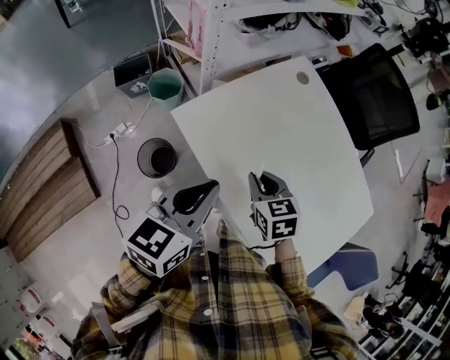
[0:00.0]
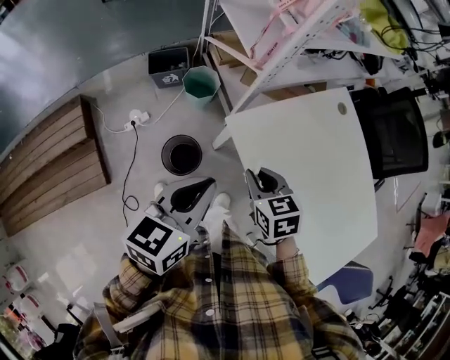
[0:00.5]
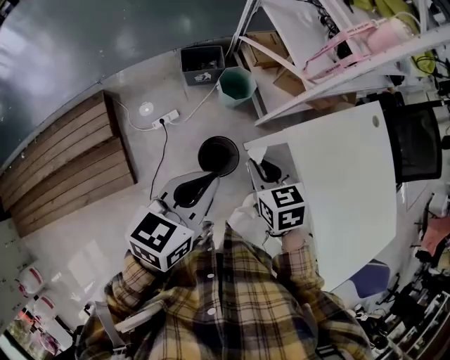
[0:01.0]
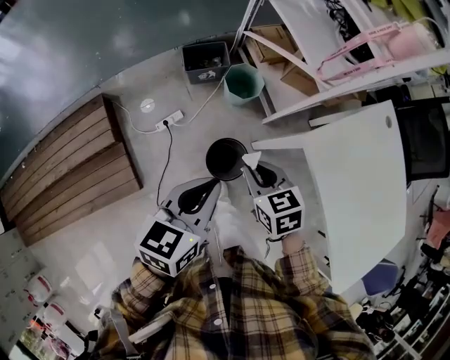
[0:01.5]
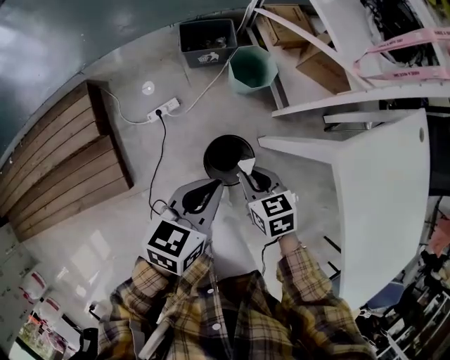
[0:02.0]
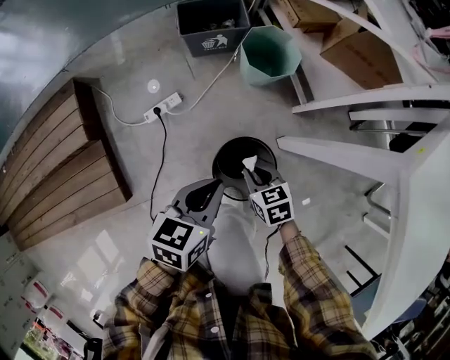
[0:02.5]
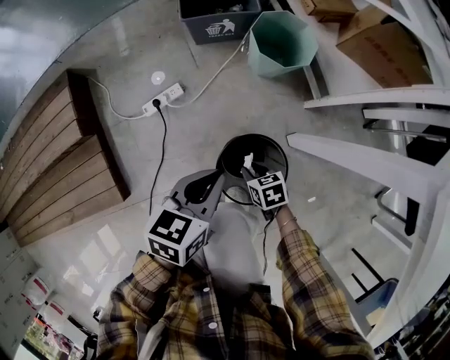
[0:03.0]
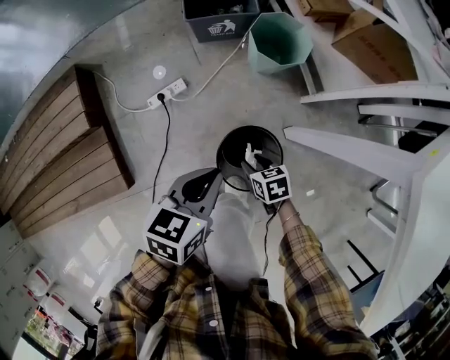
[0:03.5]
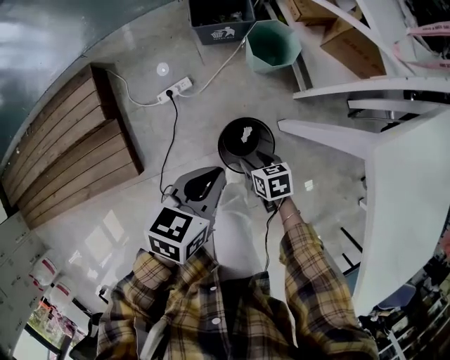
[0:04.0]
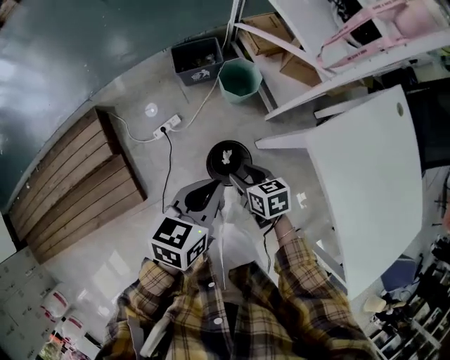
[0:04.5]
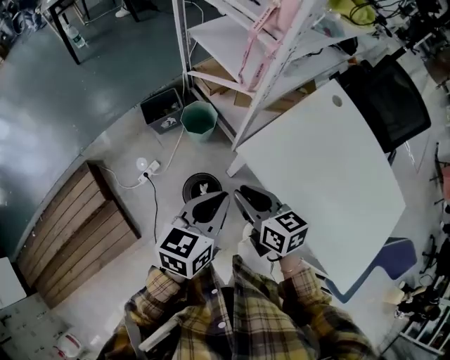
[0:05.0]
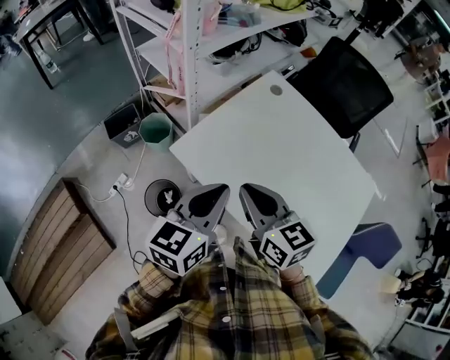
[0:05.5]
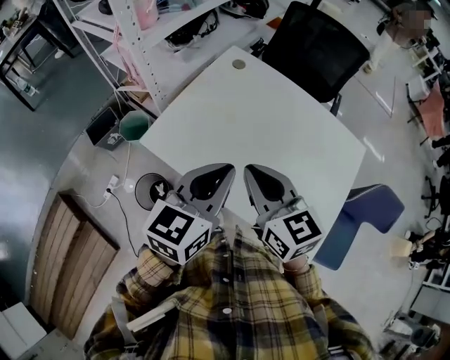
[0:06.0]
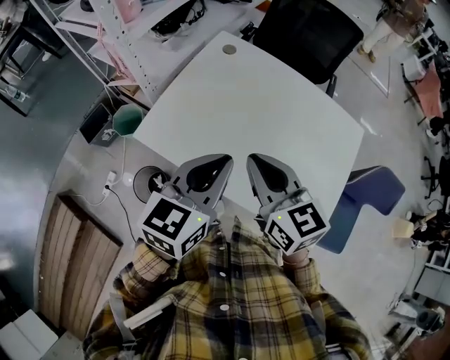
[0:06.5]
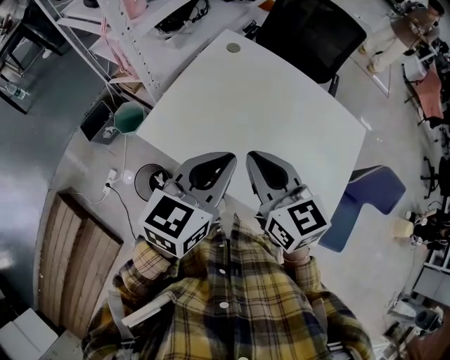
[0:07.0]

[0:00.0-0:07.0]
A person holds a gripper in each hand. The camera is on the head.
0:00.0 to 0:02.0: Both grippers travel together to the left and downward, about 50 cm. The right gripper rotates roughly 20 degrees.
0:02.0 to 0:03.5: Both grippers move downward, some 25 cm. The right gripper opens its fingers.
0:03.5 to 0:05.0: Both grippers travel together upward, approximately 50 cm. The right gripper tips its fingers upward by approximately 30 degrees, while the left gripper turns by roughly 20 degrees.
0:05.0 to 0:07.0: The left gripper shifts by approximately 35 cm, and rotates approximately 30 degrees, while the right gripper shifts by about 35 cm, and rotates about 30 degrees.

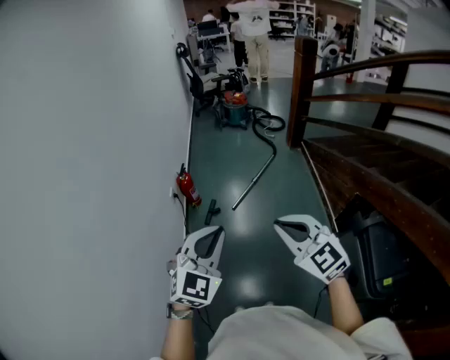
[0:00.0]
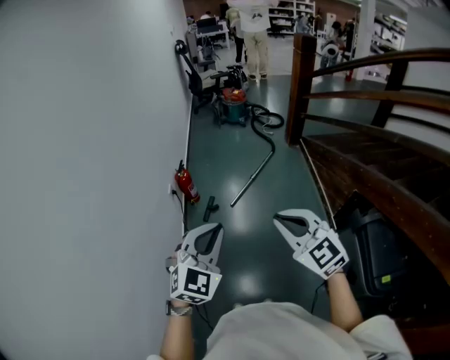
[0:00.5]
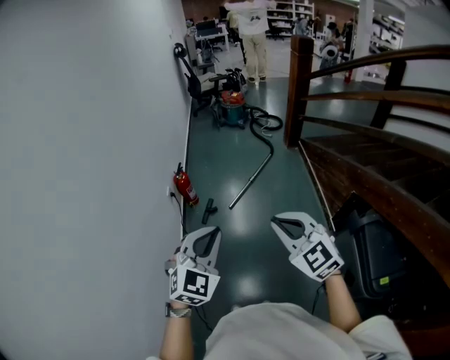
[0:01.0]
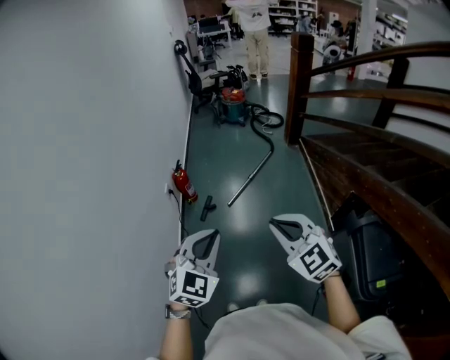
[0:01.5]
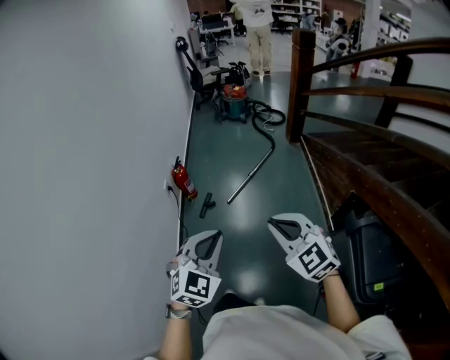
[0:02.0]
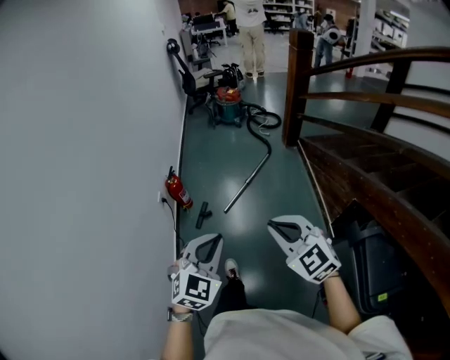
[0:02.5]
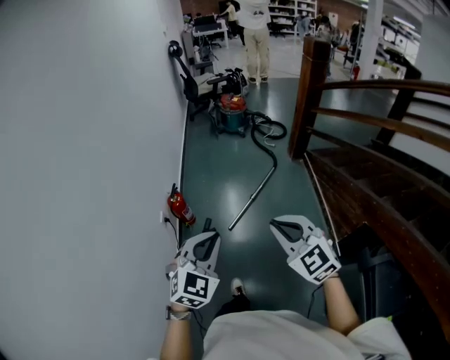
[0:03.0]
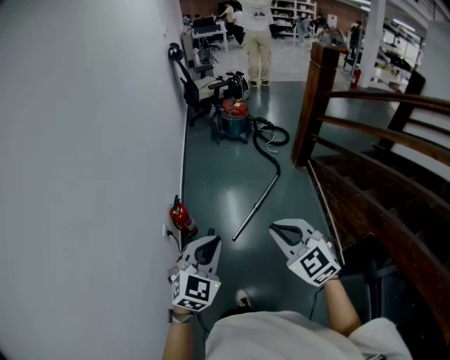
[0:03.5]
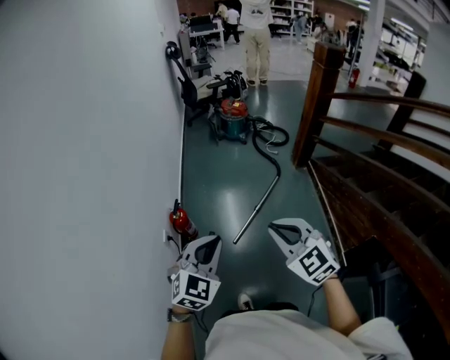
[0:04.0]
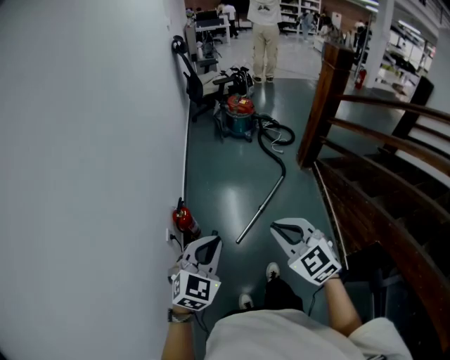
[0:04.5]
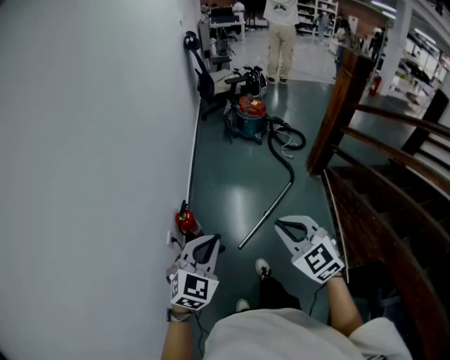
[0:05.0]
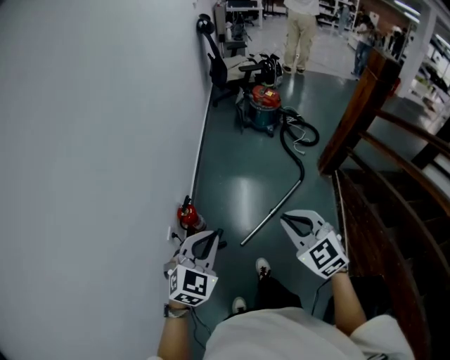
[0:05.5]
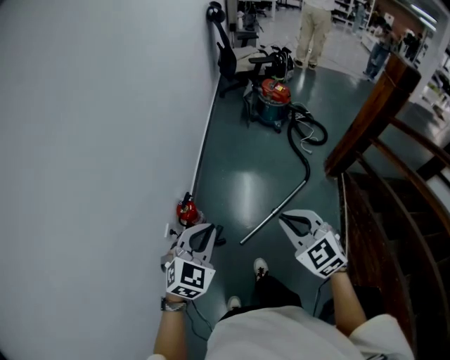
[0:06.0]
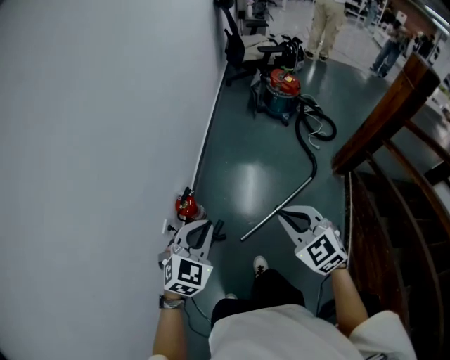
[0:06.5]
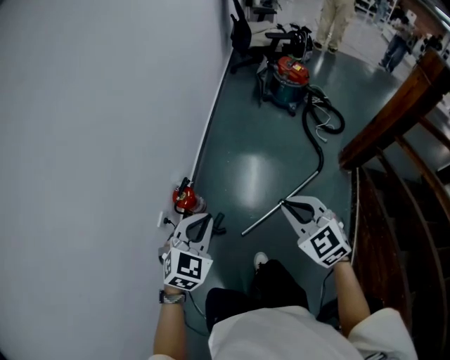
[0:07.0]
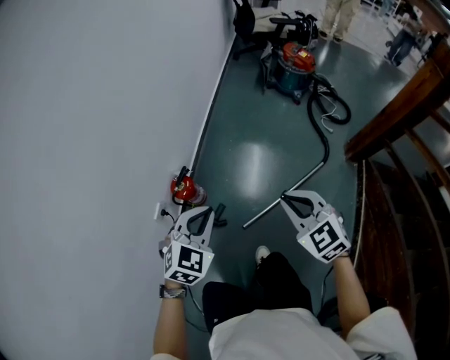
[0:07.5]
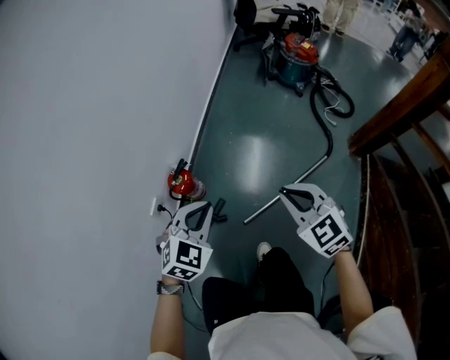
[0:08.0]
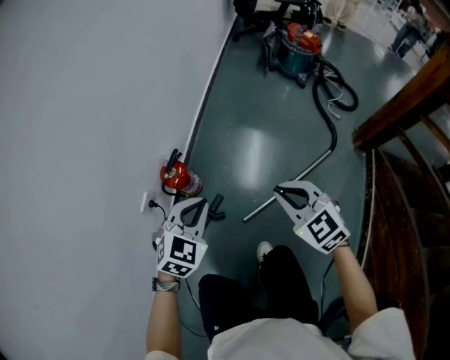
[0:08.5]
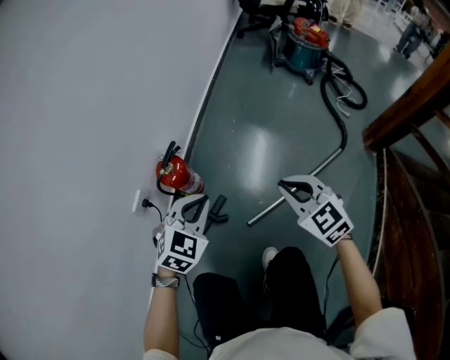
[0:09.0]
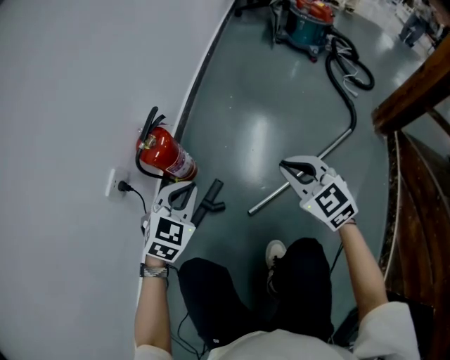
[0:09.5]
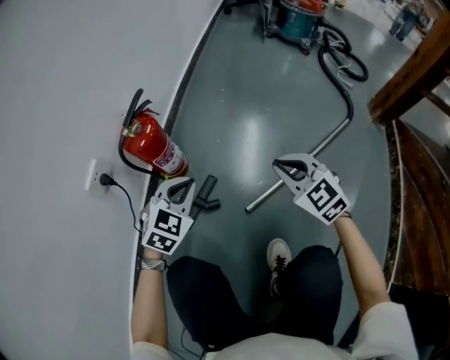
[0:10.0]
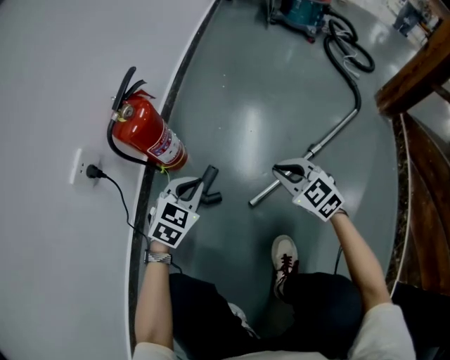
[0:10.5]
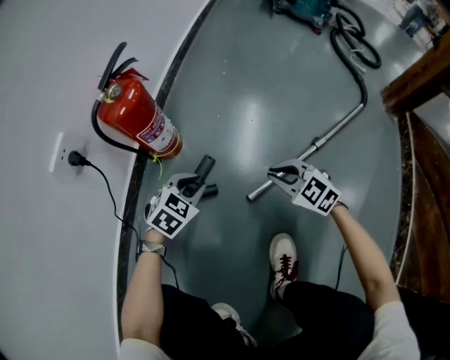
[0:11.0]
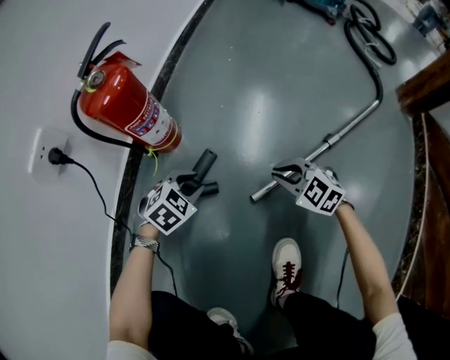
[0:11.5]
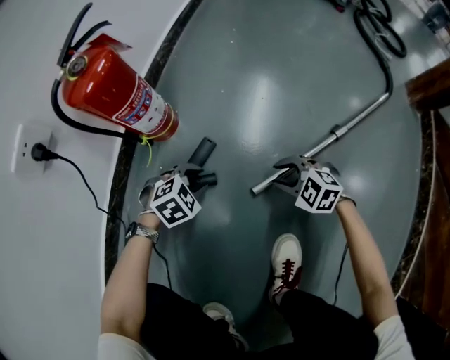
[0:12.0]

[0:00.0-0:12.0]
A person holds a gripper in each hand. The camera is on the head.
0:00.0 to 0:02.0: Both grippers move to the right, about 5 cm.
0:02.0 to 0:04.0: Both grippers travel together forward, some 40 cm.
0:04.0 to 0:06.0: The two grippers go about 25 cm forward.
0:06.0 to 0:08.0: The left gripper goes some 25 cm downward. The right gripper shifts approximately 25 cm downward and forward.
0:08.0 to 0:10.0: Both grippers travel together downward, approximately 40 cm.
0:10.0 to 0:12.0: The grippers both shift downward by about 30 cm. The right gripper turns by approximately 30 degrees, and opens up. Meanwhile the left gripper swivels roughly 30 degrees, and opens its fingers.

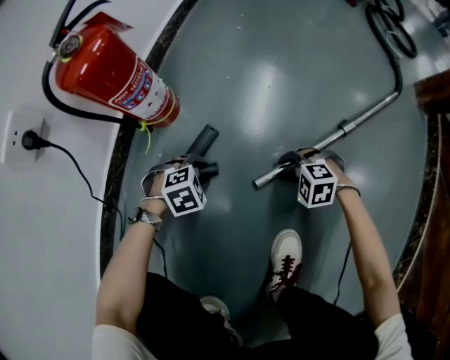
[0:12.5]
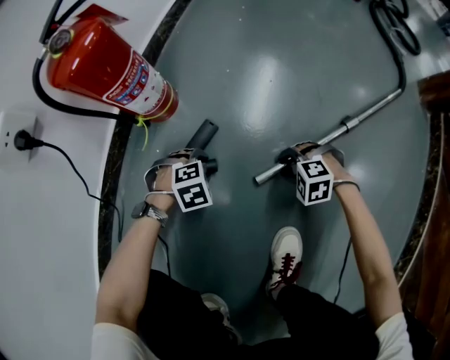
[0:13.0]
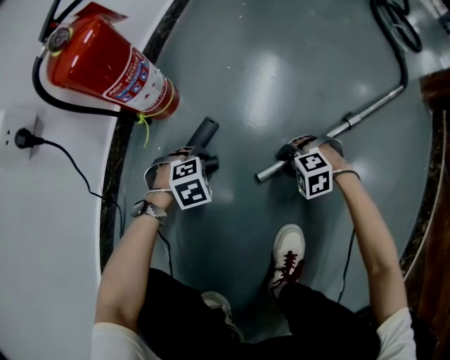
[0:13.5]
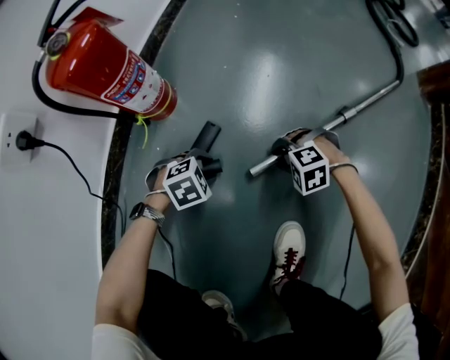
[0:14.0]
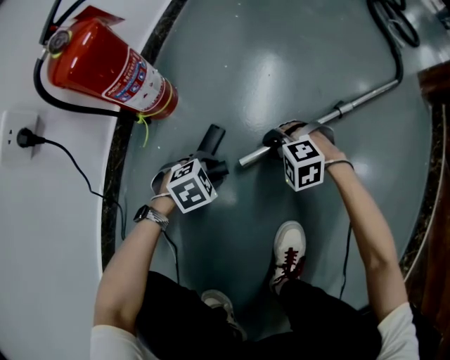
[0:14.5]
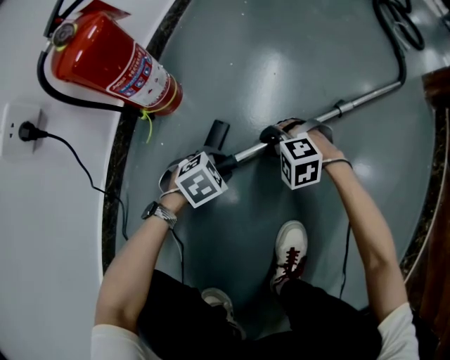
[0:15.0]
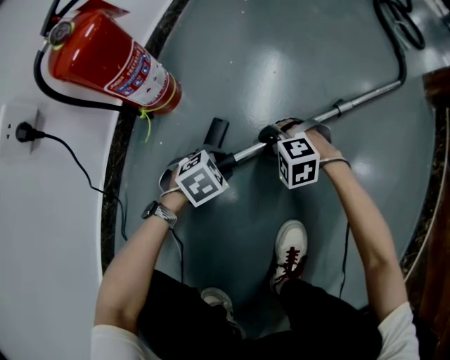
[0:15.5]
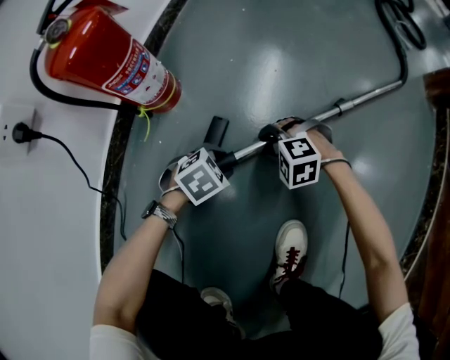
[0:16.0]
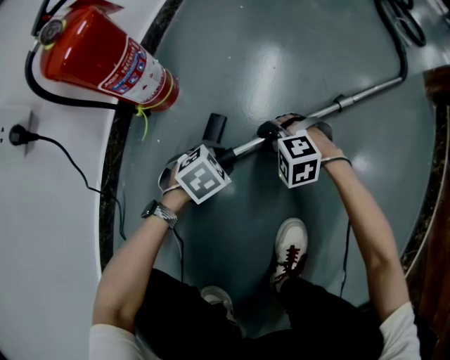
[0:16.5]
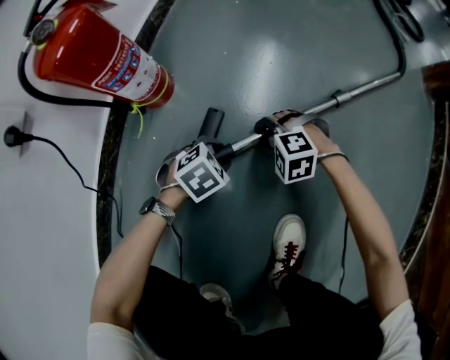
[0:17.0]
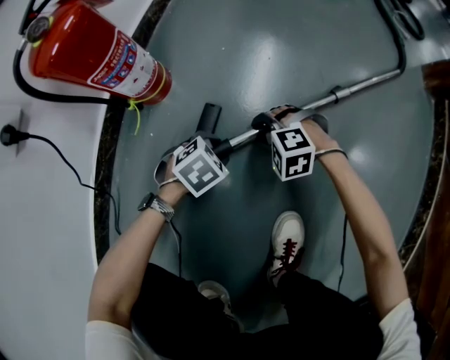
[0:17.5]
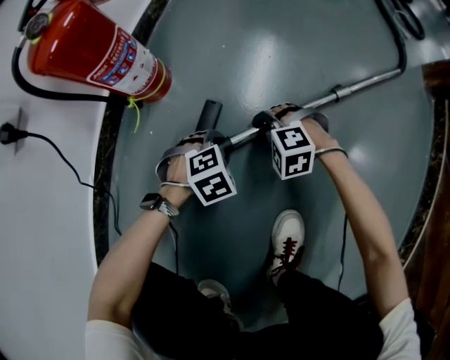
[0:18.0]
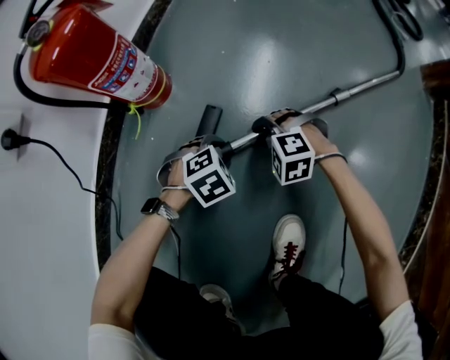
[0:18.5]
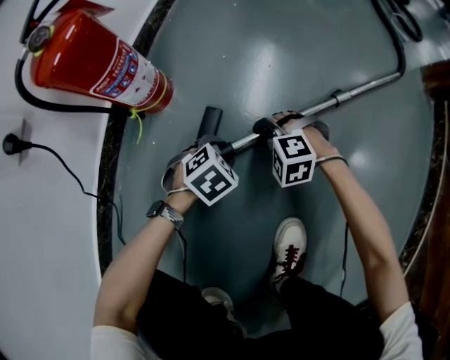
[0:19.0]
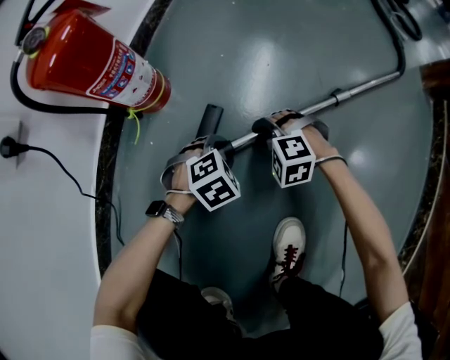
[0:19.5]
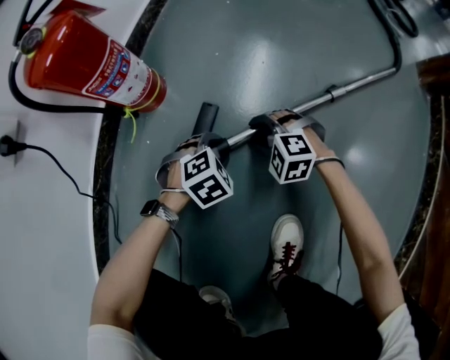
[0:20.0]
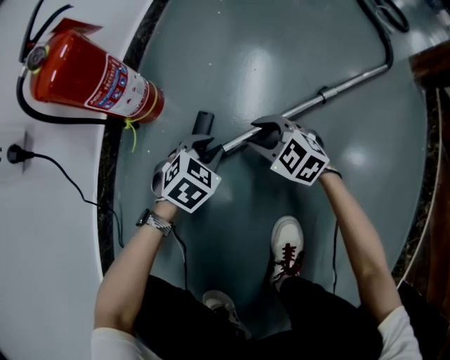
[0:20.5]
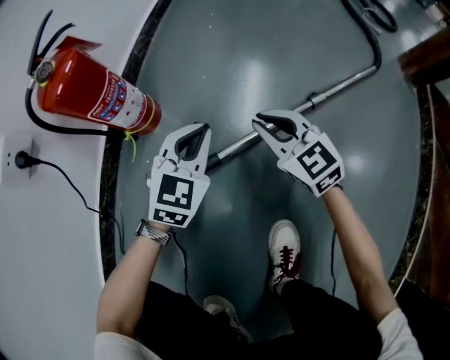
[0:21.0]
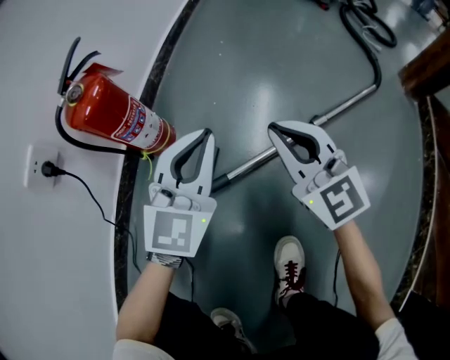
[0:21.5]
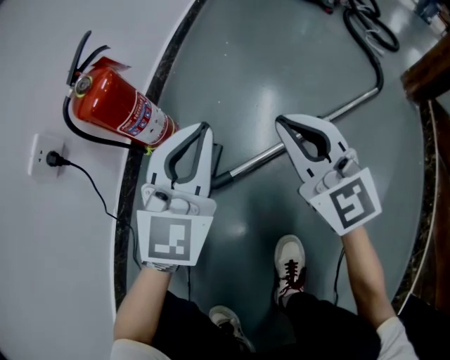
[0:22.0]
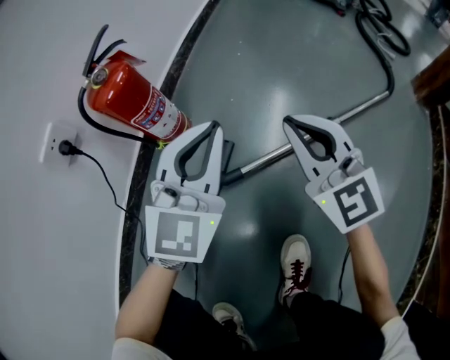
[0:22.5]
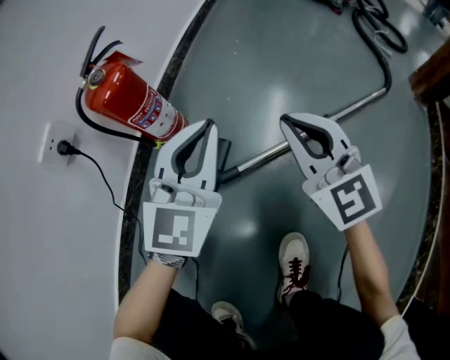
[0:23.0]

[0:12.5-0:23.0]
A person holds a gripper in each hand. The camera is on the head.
0:12.5 to 0:14.5: The right gripper shifts by roughly 5 cm.
0:14.5 to 0:16.5: The grippers stay close to where they were, moving slightly.
0:19.0 to 0:21.0: The grippers both shift upward by about 15 cm. The left gripper angles its fingers upward, by about 40 degrees, and closes; the right gripper angles its fingers upward, by about 40 degrees, and closes its fingers.
0:21.0 to 0:23.0: Both grippers travel together upward, some 20 cm. The left gripper swivels about 20 degrees.
